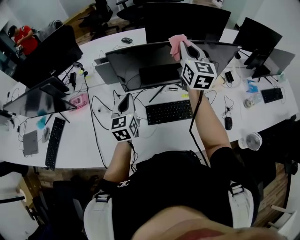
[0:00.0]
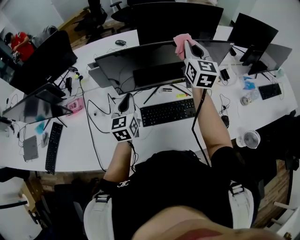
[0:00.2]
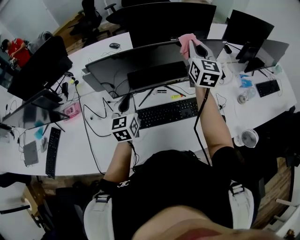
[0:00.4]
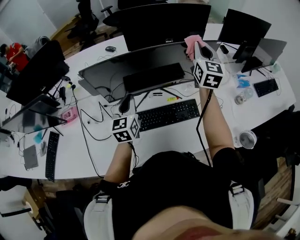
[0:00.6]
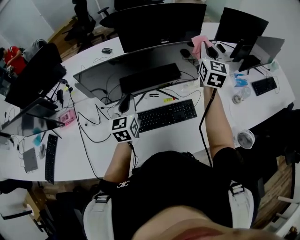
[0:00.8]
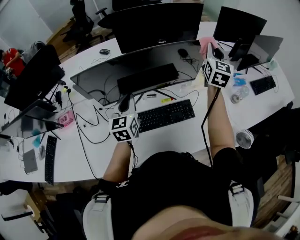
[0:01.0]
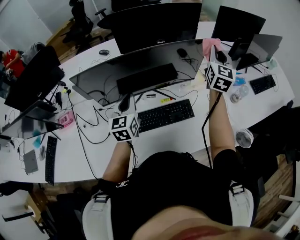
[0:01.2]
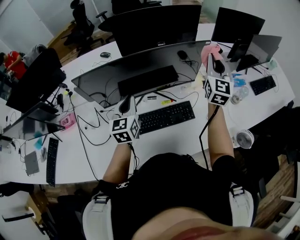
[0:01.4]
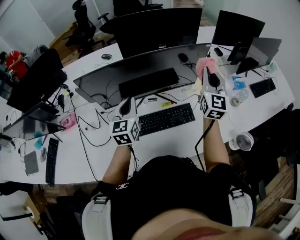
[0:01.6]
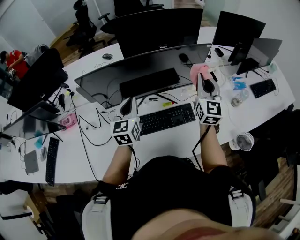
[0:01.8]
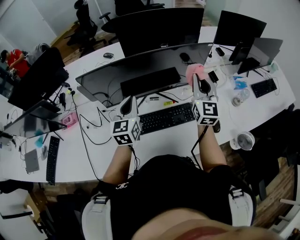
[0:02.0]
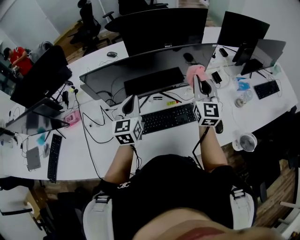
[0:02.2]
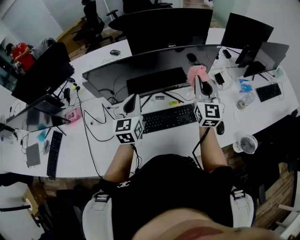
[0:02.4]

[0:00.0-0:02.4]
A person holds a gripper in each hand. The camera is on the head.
0:00.0 to 0:01.2: The right gripper moves to the right, some 30 cm, and turns by some 30 degrees. Meanwhile the left gripper is displaced to the right and forward by about 15 cm.
0:01.2 to 0:02.4: The right gripper goes approximately 15 cm to the left, backward and downward.

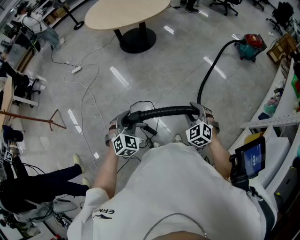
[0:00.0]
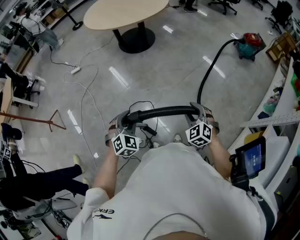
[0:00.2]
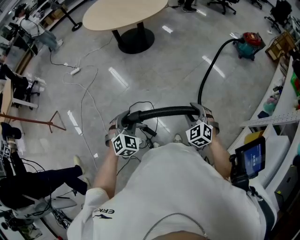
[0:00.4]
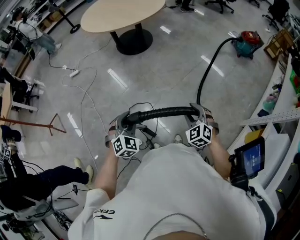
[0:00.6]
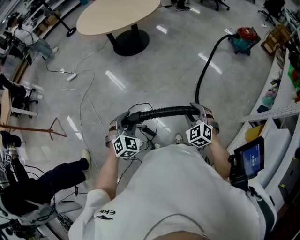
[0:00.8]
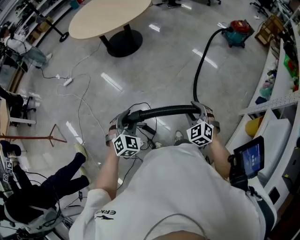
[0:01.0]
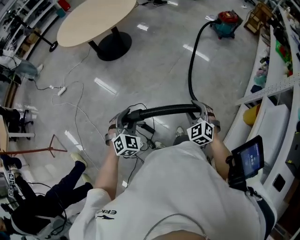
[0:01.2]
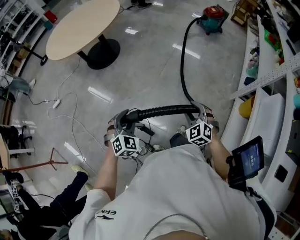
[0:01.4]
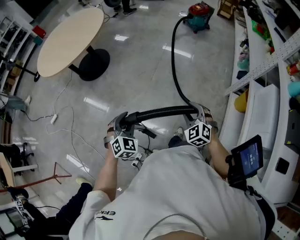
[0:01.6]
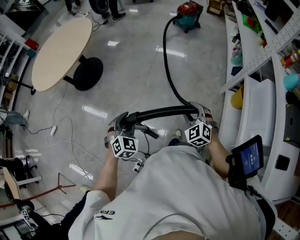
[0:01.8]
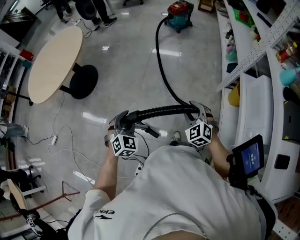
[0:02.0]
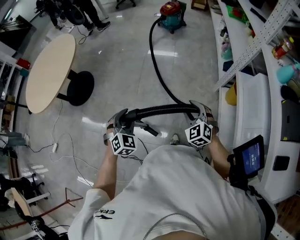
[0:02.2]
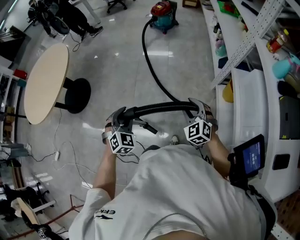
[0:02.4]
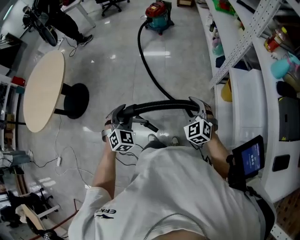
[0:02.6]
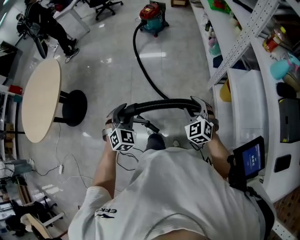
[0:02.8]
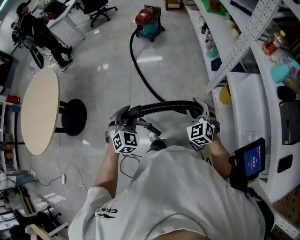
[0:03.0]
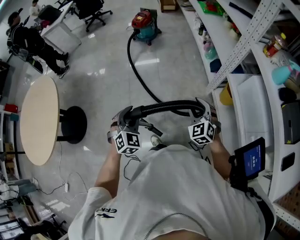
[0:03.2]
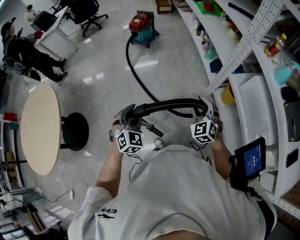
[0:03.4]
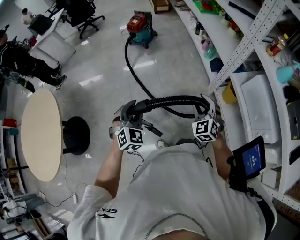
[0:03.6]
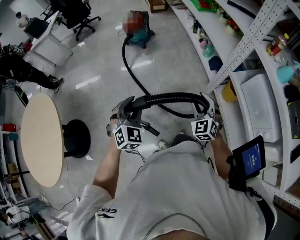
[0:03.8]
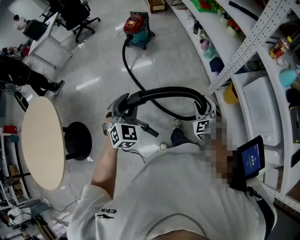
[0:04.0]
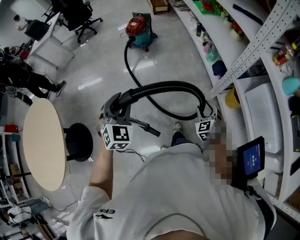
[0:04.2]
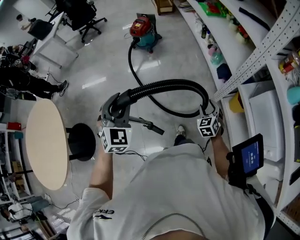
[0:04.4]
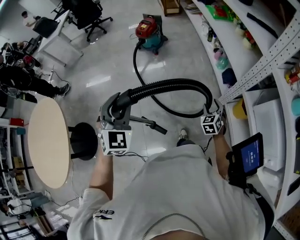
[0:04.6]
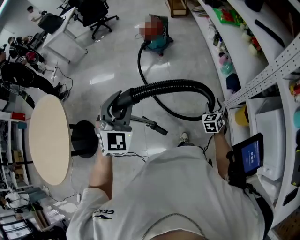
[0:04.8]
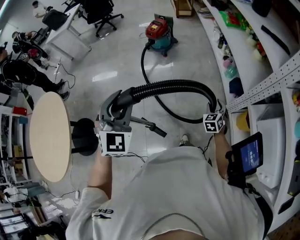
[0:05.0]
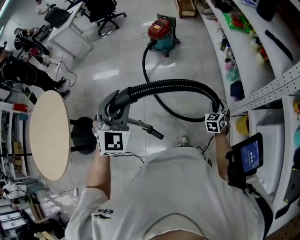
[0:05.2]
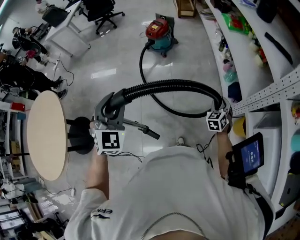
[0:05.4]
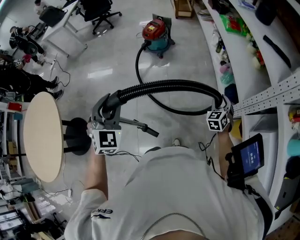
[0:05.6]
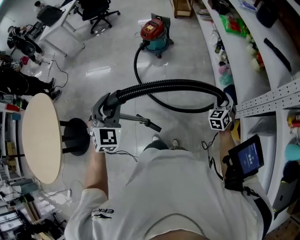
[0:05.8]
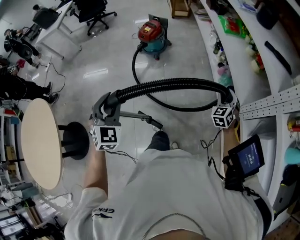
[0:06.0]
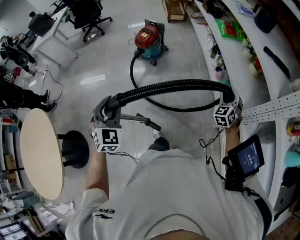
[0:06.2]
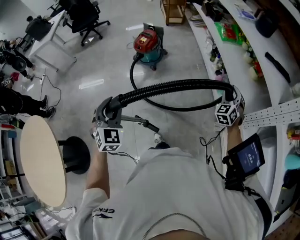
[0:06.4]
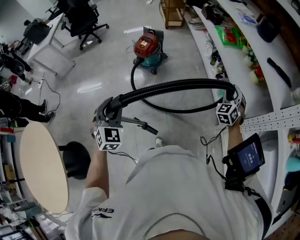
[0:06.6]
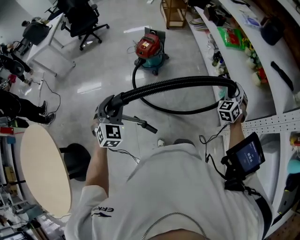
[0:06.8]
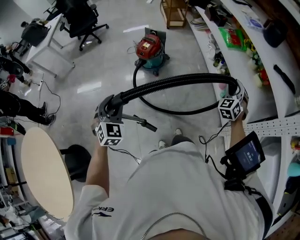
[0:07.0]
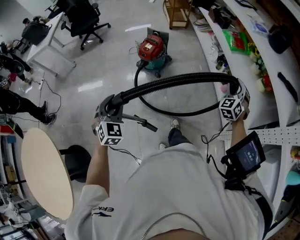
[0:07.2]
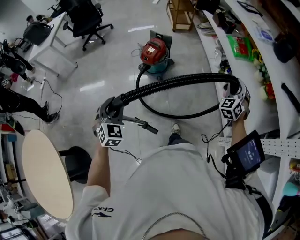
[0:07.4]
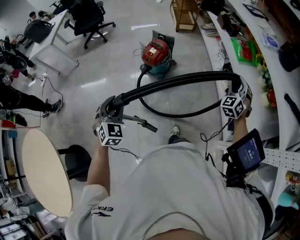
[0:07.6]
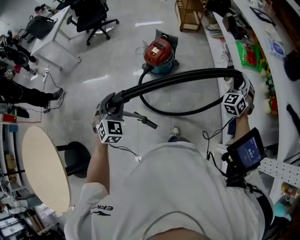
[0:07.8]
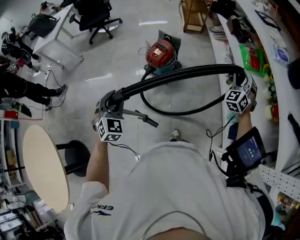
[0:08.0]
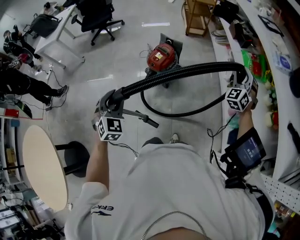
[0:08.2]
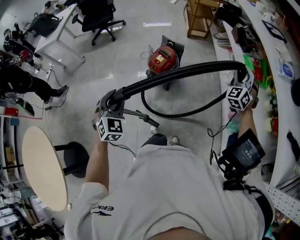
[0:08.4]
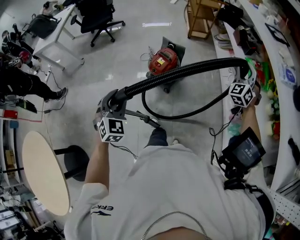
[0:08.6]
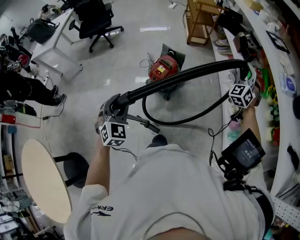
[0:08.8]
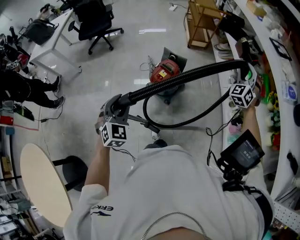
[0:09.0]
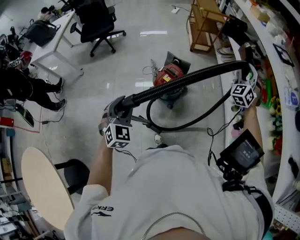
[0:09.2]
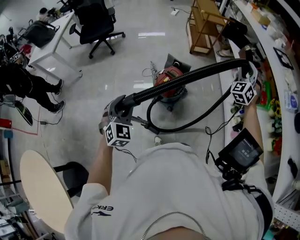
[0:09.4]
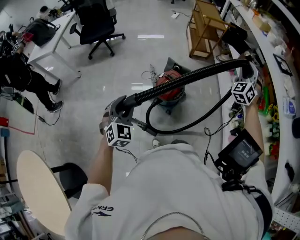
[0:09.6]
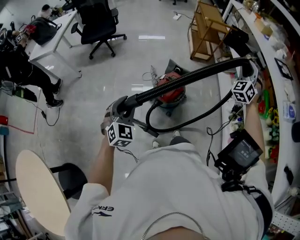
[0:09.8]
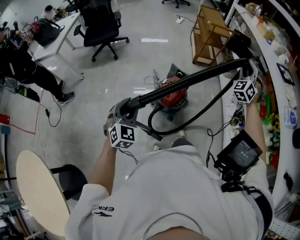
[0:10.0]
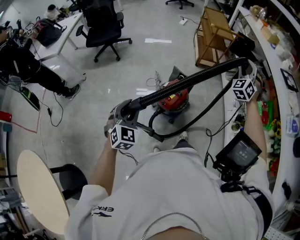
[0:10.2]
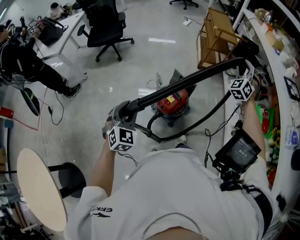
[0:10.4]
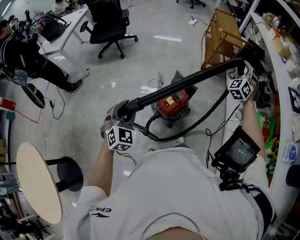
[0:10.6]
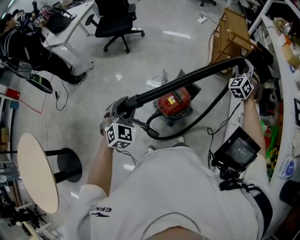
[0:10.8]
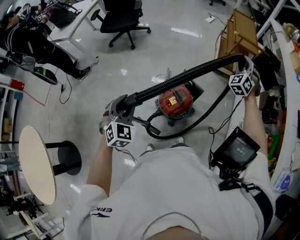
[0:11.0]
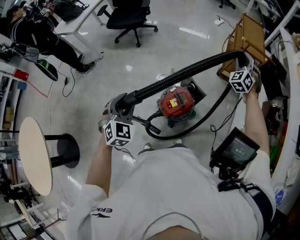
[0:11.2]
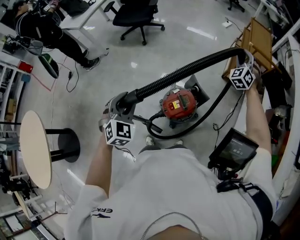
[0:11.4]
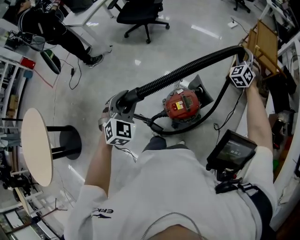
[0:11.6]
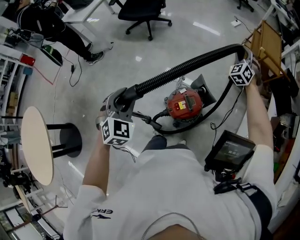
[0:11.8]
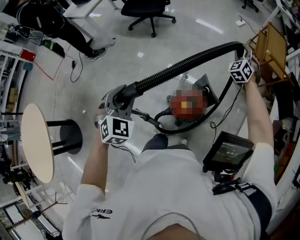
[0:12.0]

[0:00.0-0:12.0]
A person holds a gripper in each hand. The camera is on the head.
0:00.0 to 0:01.6: The left gripper moves about 15 cm, and rotates roughly 30 degrees. Meanwhile the right gripper changes place by some 10 cm, and swivels roughly 30 degrees.
0:01.6 to 0:03.0: The right gripper shifts by some 30 cm, and rotates some 30 degrees, while the left gripper ends up roughly 35 cm from where it was, and swivels some 30 degrees.
0:03.0 to 0:04.4: The left gripper heads forward, upward and to the left, covering about 30 cm; the right gripper is displaced forward and downward by some 20 cm, and turns by roughly 30 degrees.
0:04.4 to 0:06.0: The left gripper shifts some 20 cm forward. The right gripper is displaced forward by approximately 30 cm.
0:06.0 to 0:07.6: The two grippers go about 35 cm forward and to the left.
0:07.6 to 0:09.0: The two grippers go about 25 cm forward.
0:09.0 to 0:10.4: The right gripper heads forward and to the left, covering about 25 cm; the left gripper travels forward and to the left by some 15 cm.
0:10.4 to 0:12.0: The left gripper ends up some 15 cm from where it was, and turns by about 20 degrees. The right gripper shifts by approximately 40 cm, and rotates approximately 30 degrees.

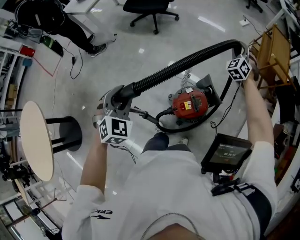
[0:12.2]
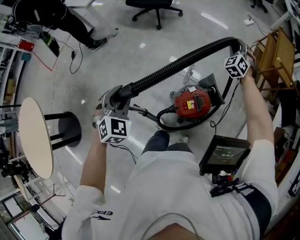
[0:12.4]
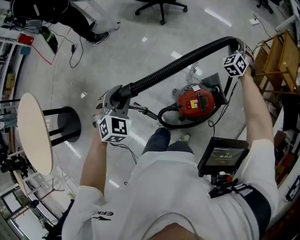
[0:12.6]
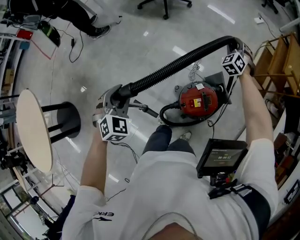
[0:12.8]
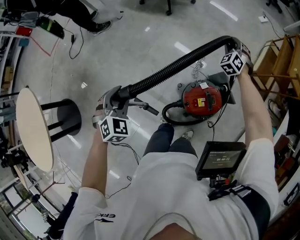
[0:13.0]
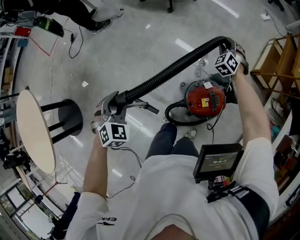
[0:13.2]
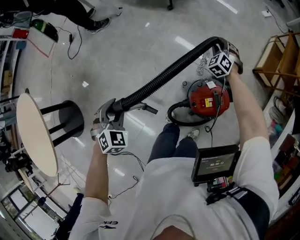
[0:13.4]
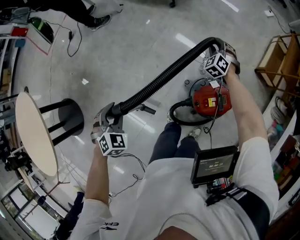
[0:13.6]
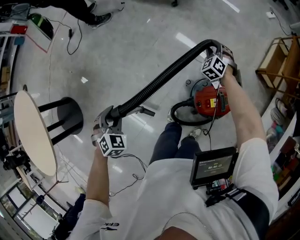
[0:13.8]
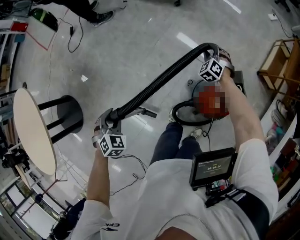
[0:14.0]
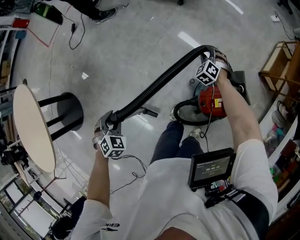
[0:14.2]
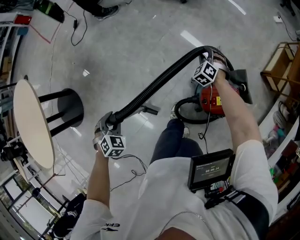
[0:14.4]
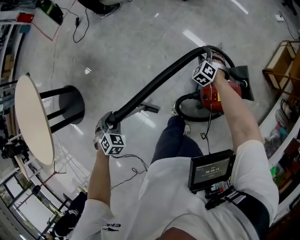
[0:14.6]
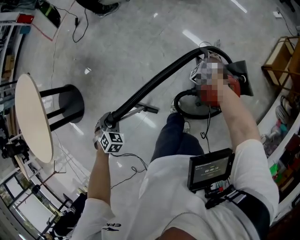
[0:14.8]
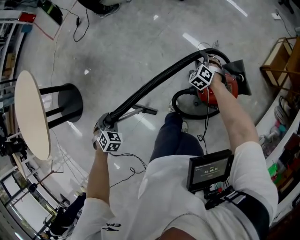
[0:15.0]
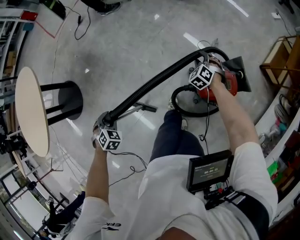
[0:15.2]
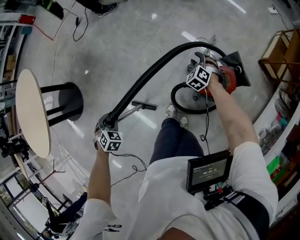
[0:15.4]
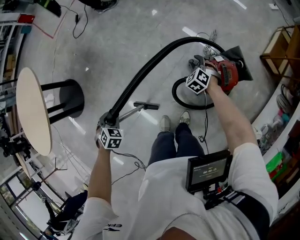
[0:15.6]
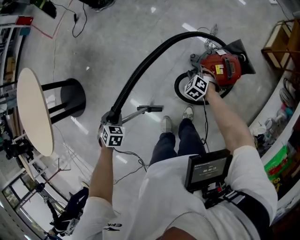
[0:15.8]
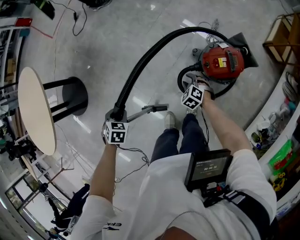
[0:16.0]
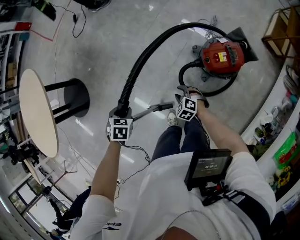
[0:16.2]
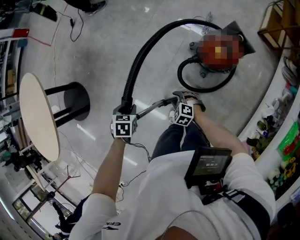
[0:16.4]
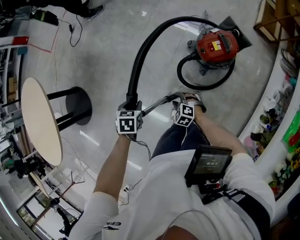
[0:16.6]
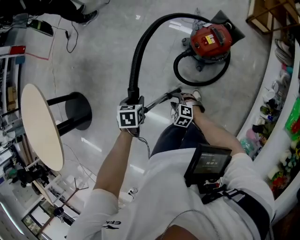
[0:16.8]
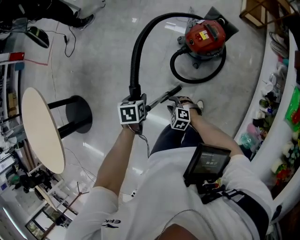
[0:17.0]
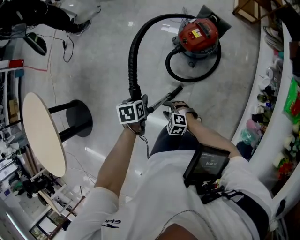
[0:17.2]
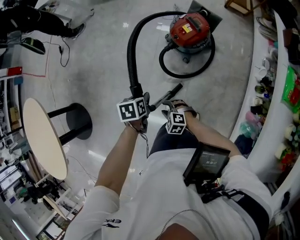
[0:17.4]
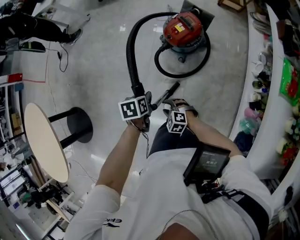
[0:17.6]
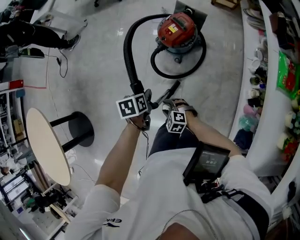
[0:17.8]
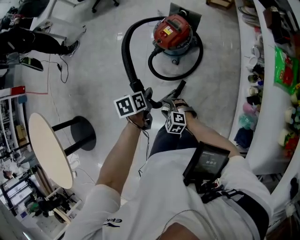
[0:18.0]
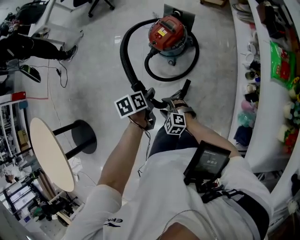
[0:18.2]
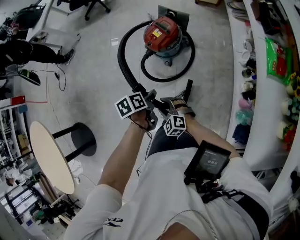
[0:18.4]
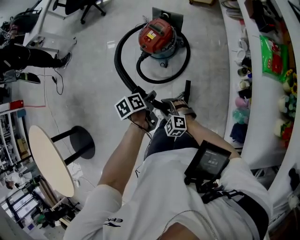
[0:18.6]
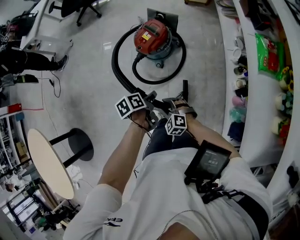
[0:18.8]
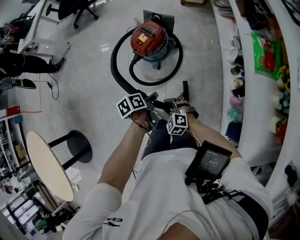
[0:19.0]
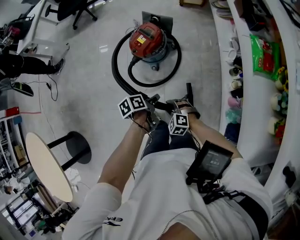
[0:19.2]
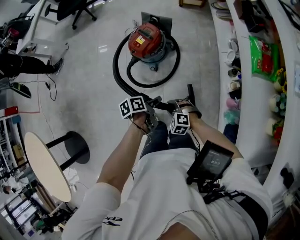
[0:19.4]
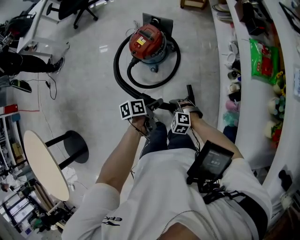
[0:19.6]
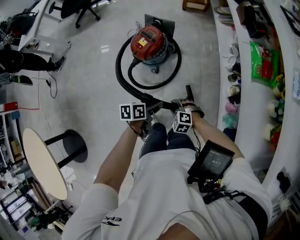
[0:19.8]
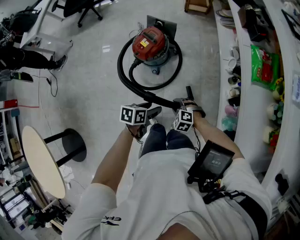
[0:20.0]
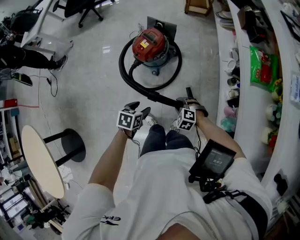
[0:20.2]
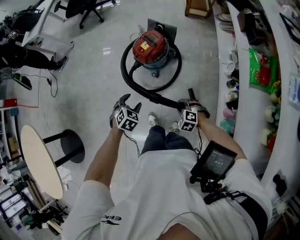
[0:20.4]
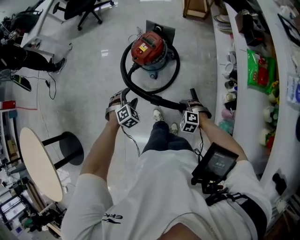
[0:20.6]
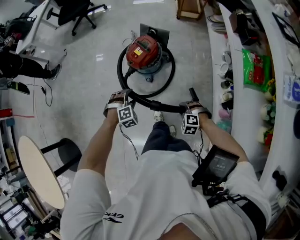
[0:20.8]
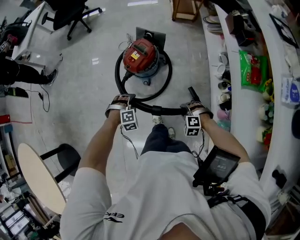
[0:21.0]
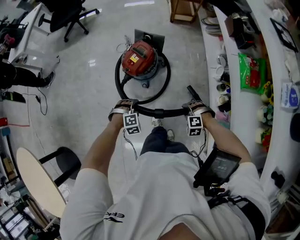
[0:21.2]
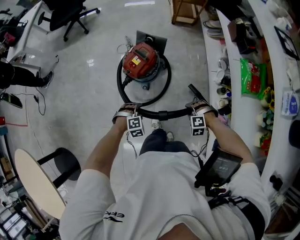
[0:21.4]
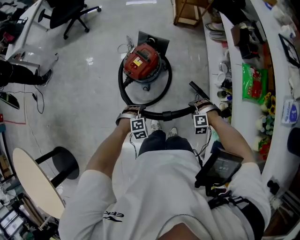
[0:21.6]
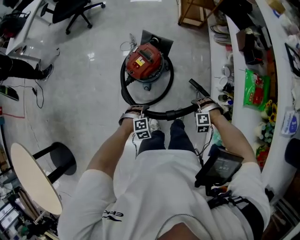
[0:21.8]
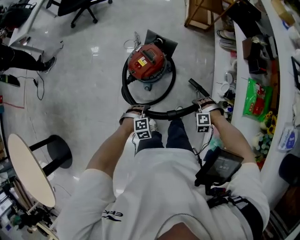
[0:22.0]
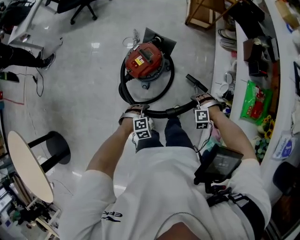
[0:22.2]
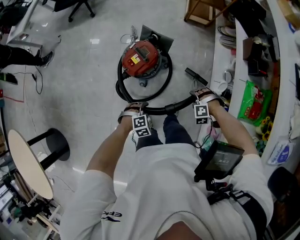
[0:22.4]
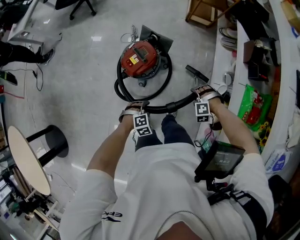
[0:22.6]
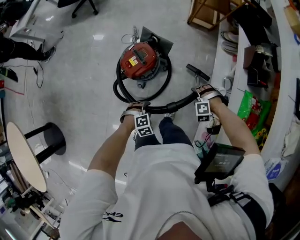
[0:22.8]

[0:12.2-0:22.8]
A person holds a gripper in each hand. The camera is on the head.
0:12.2 to 0:13.8: The grippers both shift to the left and downward by about 35 cm. The left gripper rotates roughly 20 degrees. Meanwhile the right gripper changes its angle by some 20 degrees.
0:13.8 to 0:15.2: The left gripper goes roughly 20 cm backward, while the right gripper travels backward and to the left by some 20 cm.
0:15.2 to 0:16.8: The right gripper travels backward and to the left by roughly 50 cm, and turns by roughly 30 degrees. Meanwhile the left gripper shifts roughly 10 cm backward and to the right, and changes its angle by about 30 degrees.
0:16.8 to 0:18.2: The left gripper goes approximately 25 cm to the right and backward, and turns by some 20 degrees; the right gripper heads backward, to the right and upward, covering some 20 cm, and turns by roughly 20 degrees.
0:18.2 to 0:19.8: The grippers both shift to the right by about 15 cm. The left gripper swivels some 30 degrees, and opens up.
0:19.8 to 0:21.2: The left gripper ends up roughly 15 cm from where it was, and twists roughly 100 degrees clockwise, seen from behind, while the right gripper moves approximately 10 cm.
0:21.2 to 0:22.8: The right gripper travels forward by some 30 cm, and swivels about 20 degrees. The left gripper moves to the right and forward, about 20 cm, and changes its angle by about 20 degrees.
